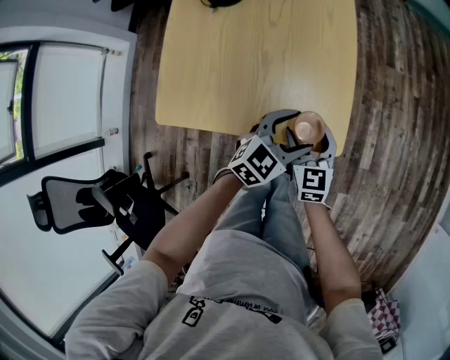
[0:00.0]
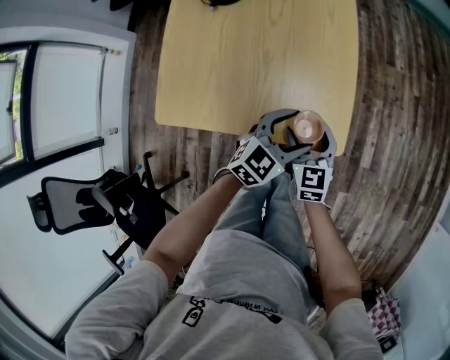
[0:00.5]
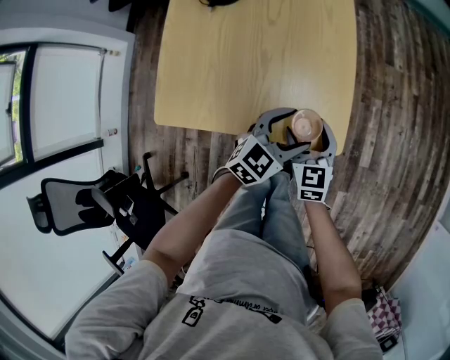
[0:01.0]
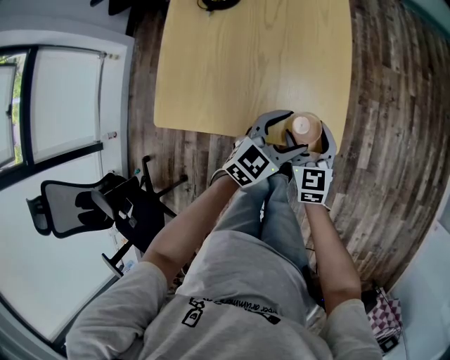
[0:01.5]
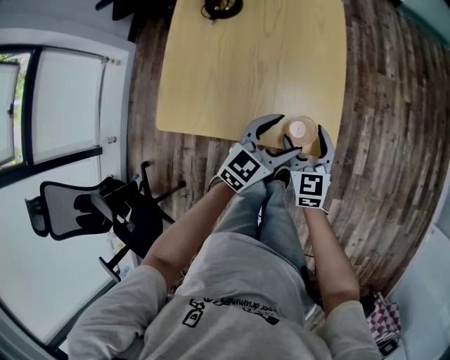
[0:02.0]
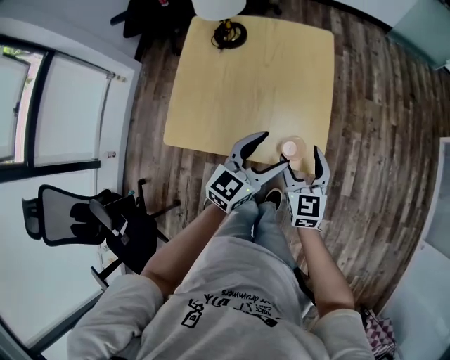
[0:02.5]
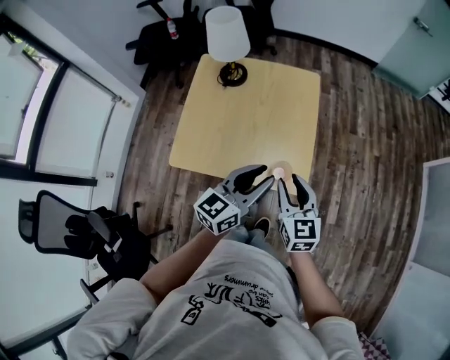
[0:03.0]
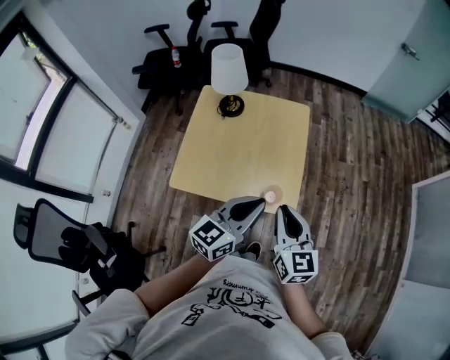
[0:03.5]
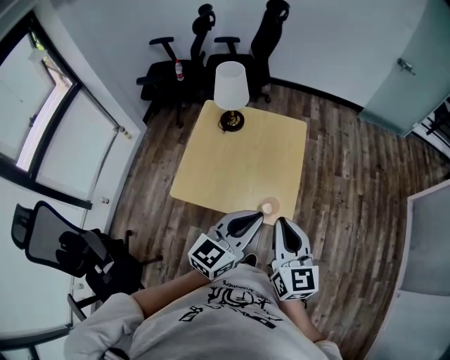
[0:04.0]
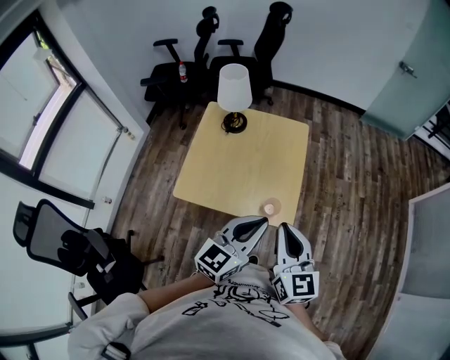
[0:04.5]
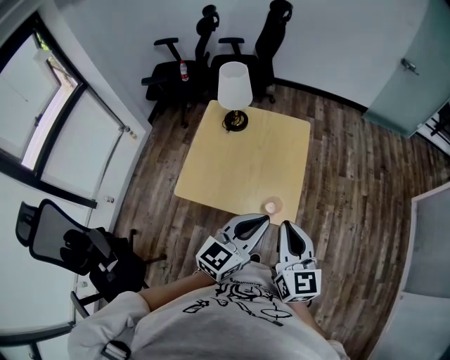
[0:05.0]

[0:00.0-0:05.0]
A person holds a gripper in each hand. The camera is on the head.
0:00.0 to 0:02.5: Both grippers travel together upward, some 10 cm. The left gripper changes its angle by roughly 20 degrees.
0:02.5 to 0:05.0: The left gripper moves upward and backward, about 20 cm, and closes its fingers; the right gripper heads upward, covering approximately 25 cm, and closes its fingers.

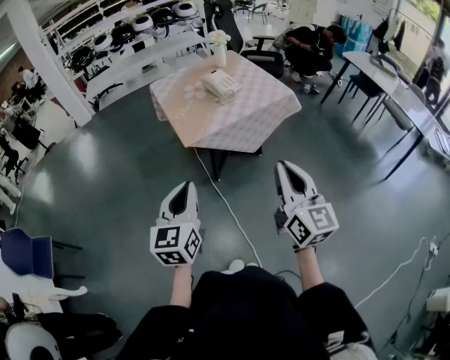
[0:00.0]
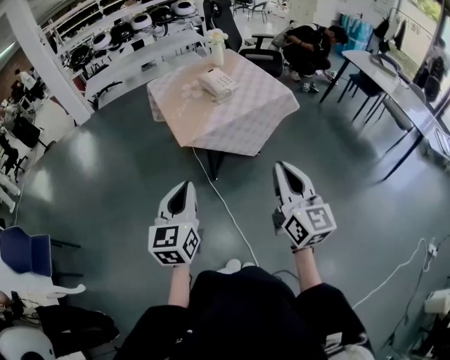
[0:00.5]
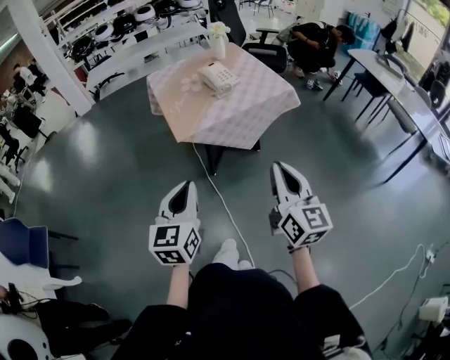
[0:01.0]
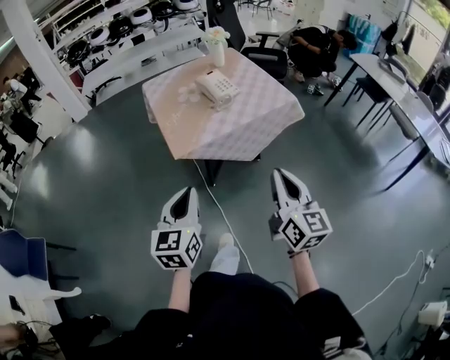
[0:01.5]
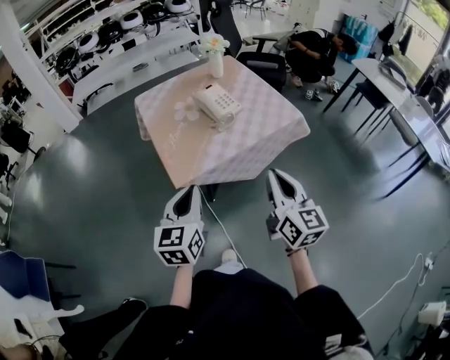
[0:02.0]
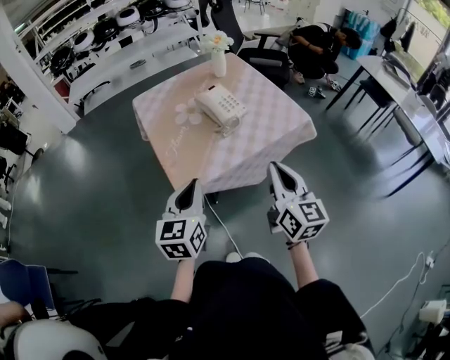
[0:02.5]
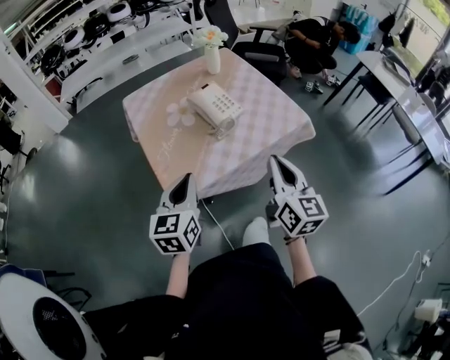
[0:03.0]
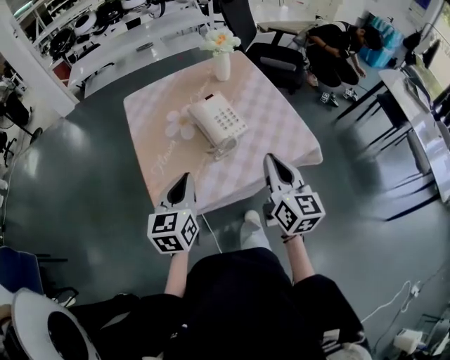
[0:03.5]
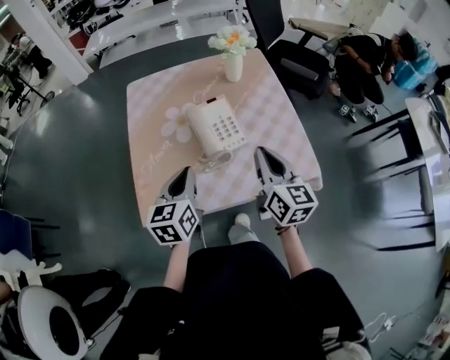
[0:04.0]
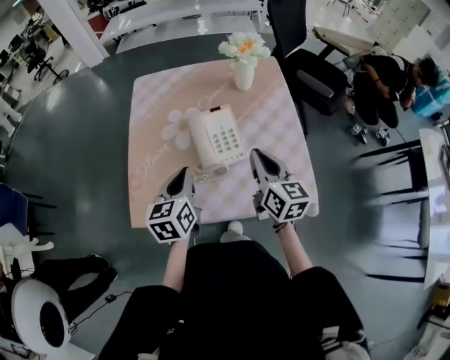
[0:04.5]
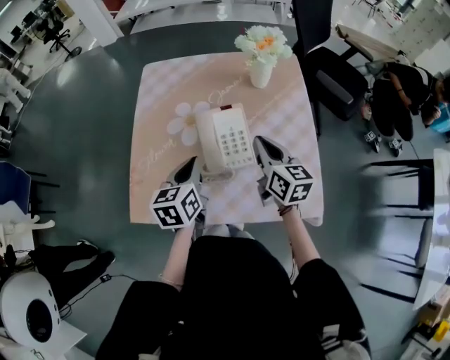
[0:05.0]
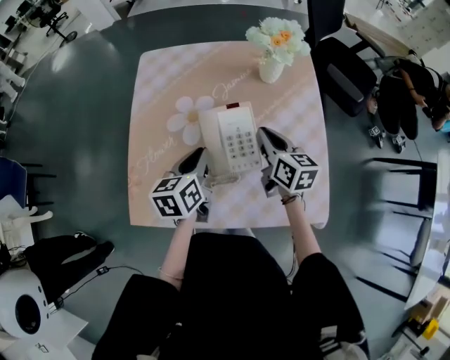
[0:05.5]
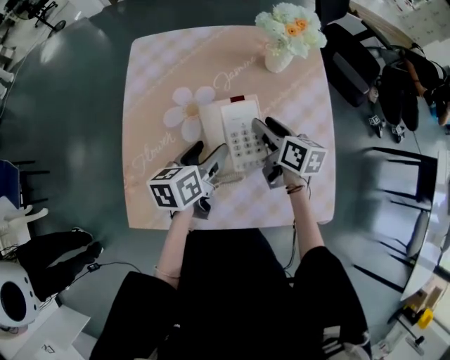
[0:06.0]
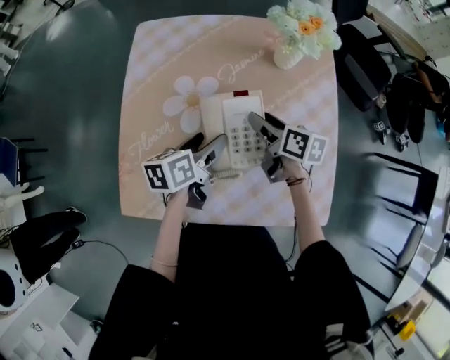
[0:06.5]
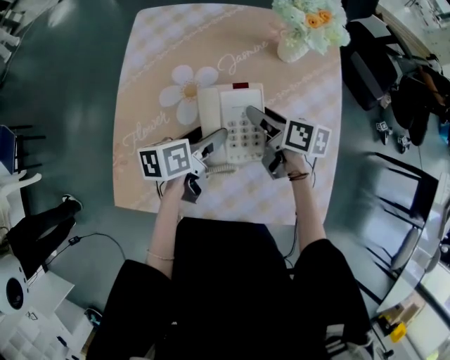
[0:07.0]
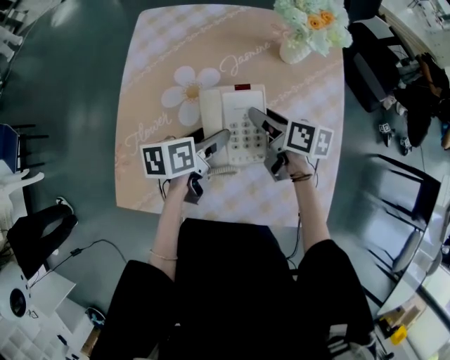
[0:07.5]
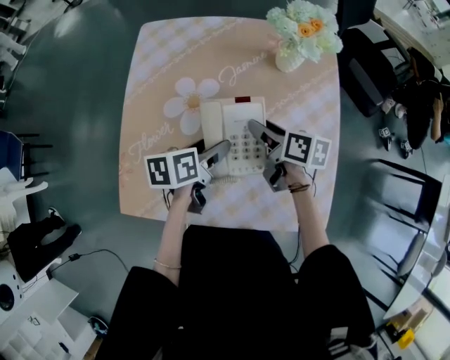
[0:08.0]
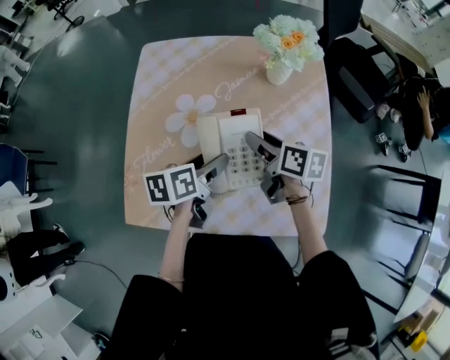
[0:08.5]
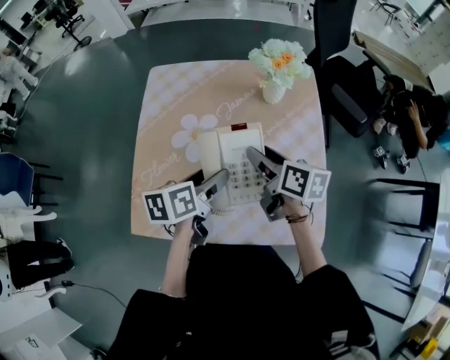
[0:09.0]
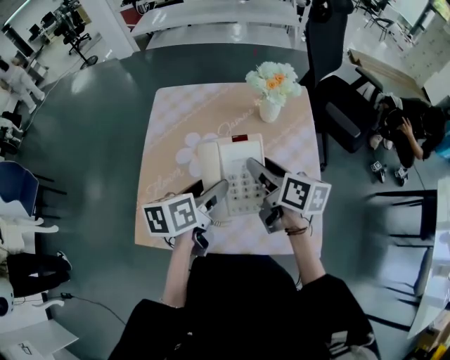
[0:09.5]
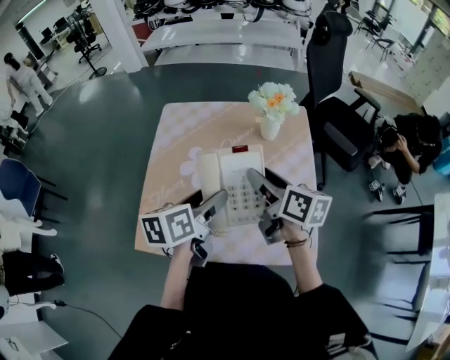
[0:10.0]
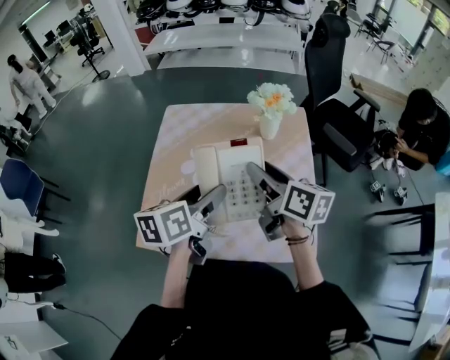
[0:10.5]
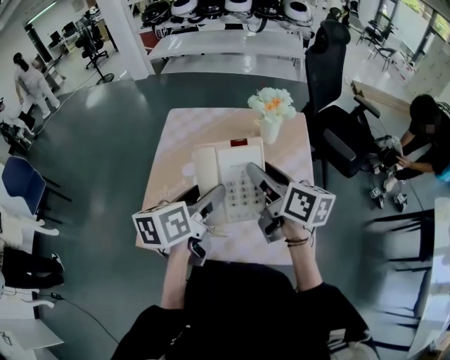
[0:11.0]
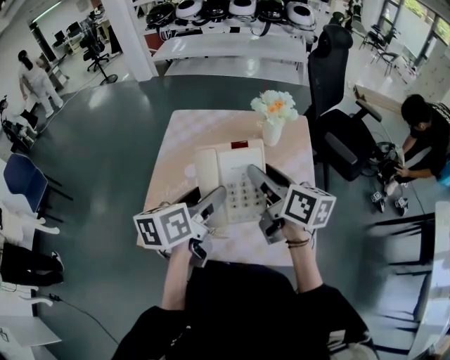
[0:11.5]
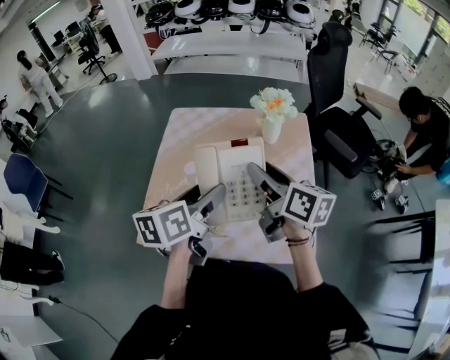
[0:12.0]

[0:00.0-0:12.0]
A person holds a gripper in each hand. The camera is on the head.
0:00.0 to 0:02.0: Both grippers move forward, roughly 25 cm.
0:02.0 to 0:04.0: Both grippers move forward, roughly 35 cm. The left gripper swivels approximately 20 degrees.
0:04.0 to 0:06.0: Both grippers travel together forward and downward, some 25 cm. The right gripper changes its angle by some 30 degrees, and opens. The left gripper turns by about 30 degrees, and opens.
0:06.0 to 0:08.0: The grippers make only small movements.
0:08.0 to 0:10.0: Both grippers move upward, roughly 20 cm. The right gripper swivels some 20 degrees.
0:10.0 to 0:12.0: The left gripper moves about 5 cm. The right gripper goes roughly 5 cm upward.

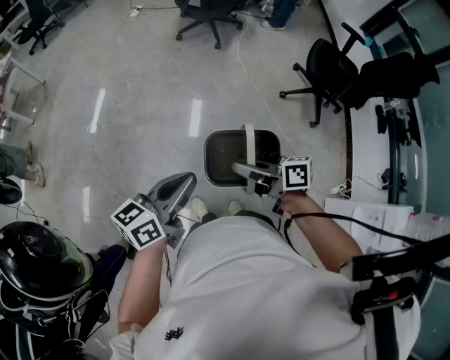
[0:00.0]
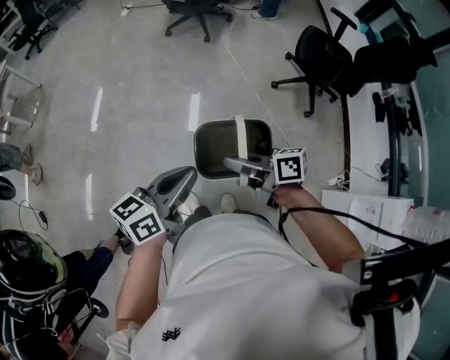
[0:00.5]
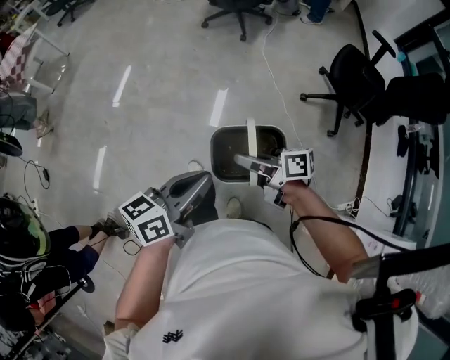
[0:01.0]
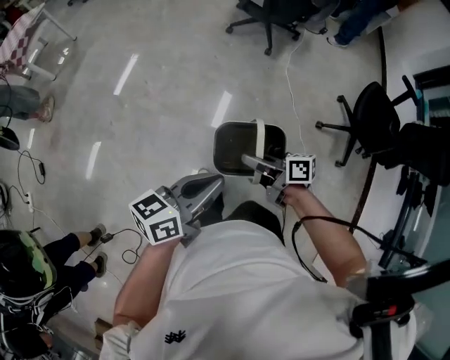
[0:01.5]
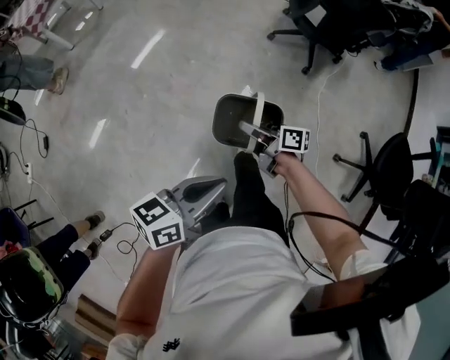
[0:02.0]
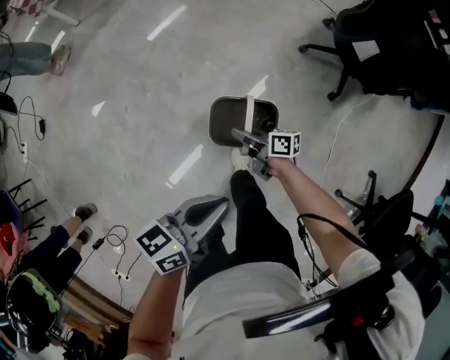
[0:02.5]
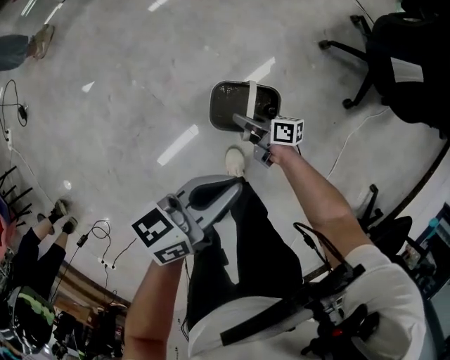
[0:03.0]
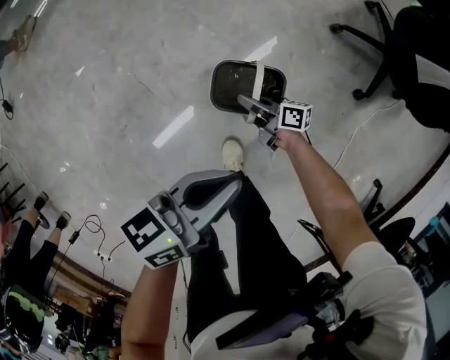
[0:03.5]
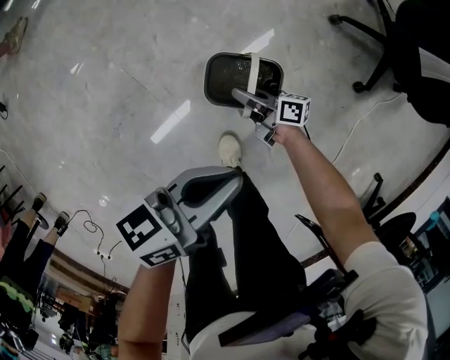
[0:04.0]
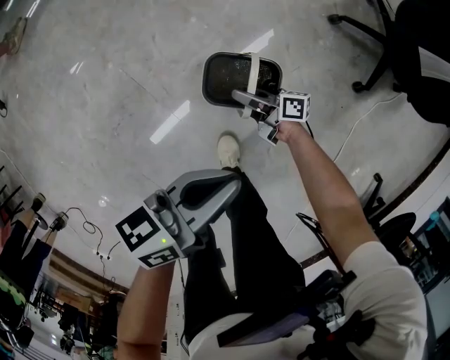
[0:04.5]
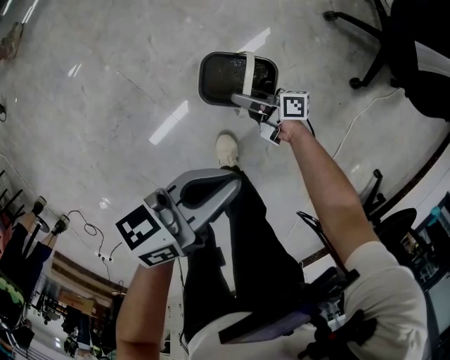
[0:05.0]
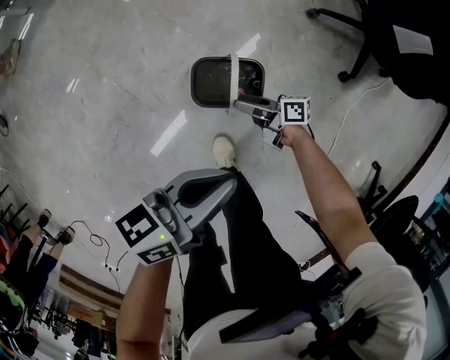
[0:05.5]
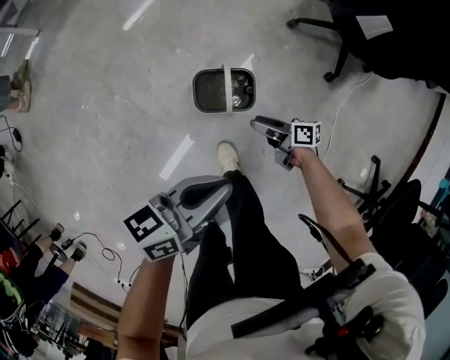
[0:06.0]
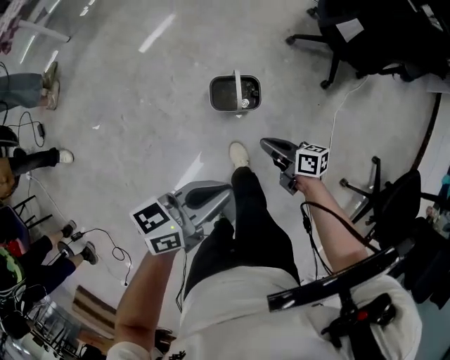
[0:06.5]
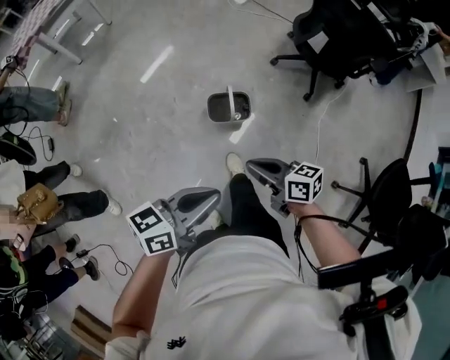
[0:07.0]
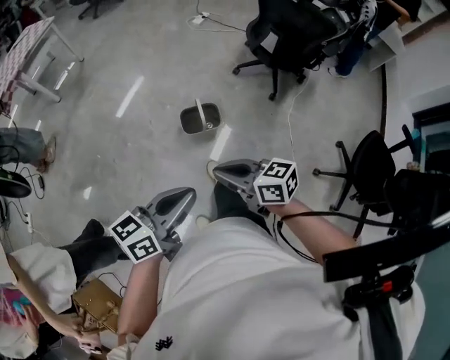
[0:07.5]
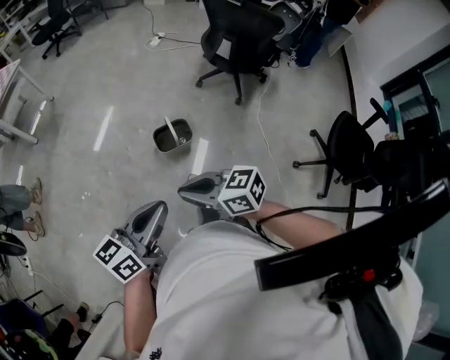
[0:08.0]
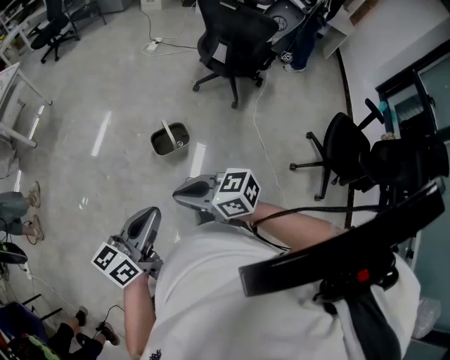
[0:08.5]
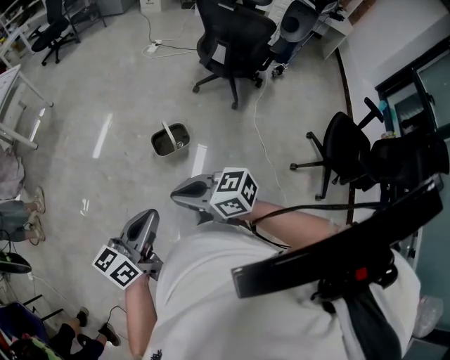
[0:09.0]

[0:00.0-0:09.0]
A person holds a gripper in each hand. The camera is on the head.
0:00.0 to 0:02.0: Both grippers move forward, roughly 40 cm.
0:02.0 to 0:04.5: The right gripper goes roughly 50 cm downward and forward, turns by approximately 20 degrees, and opens up. Meanwhile the left gripper shifts roughly 50 cm forward and downward, and swivels roughly 20 degrees.
0:04.5 to 0:07.0: The right gripper shifts some 50 cm upward, changes its angle by some 30 degrees, and closes its fingers. Meanwhile the left gripper heads upward, covering roughly 30 cm, and swivels some 20 degrees.
0:07.0 to 0:09.0: The right gripper heads upward, backward and to the left, covering approximately 20 cm, while the left gripper travels backward and upward by approximately 10 cm.

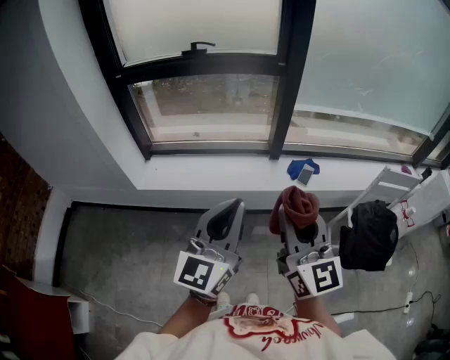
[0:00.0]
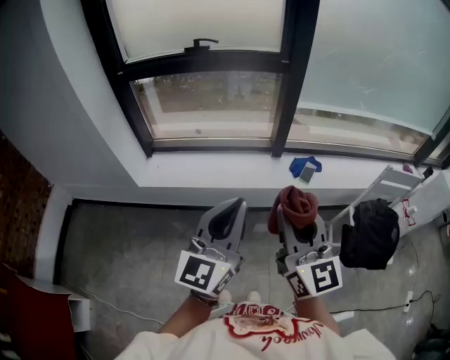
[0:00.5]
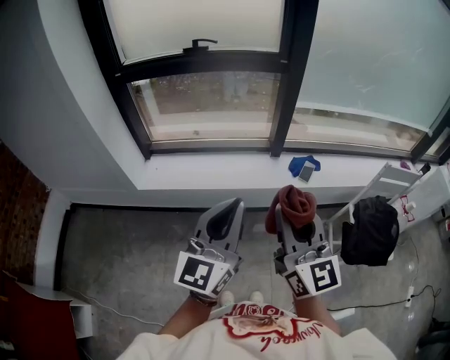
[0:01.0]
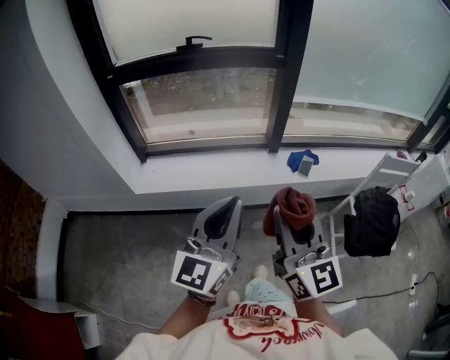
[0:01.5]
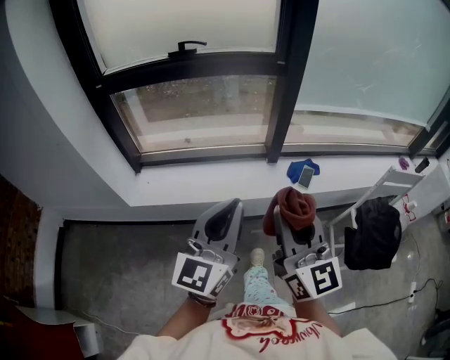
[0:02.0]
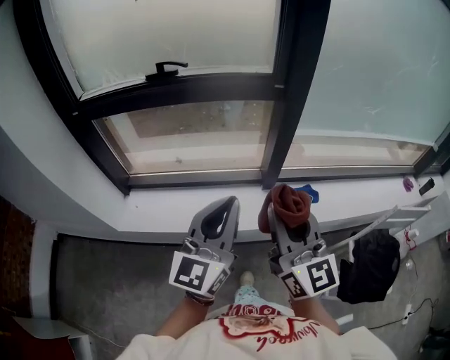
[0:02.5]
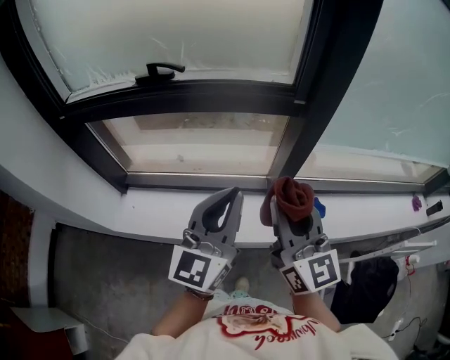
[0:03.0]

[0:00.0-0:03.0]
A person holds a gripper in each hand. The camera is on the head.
0:00.0 to 0:01.5: The grippers both shift to the left by some 5 cm.
0:01.5 to 0:03.0: The pair of grippers is taken forward, some 40 cm.
